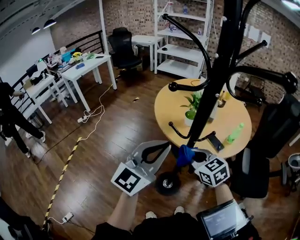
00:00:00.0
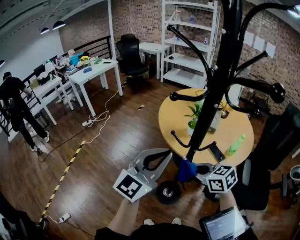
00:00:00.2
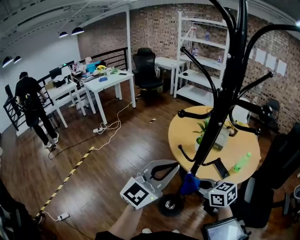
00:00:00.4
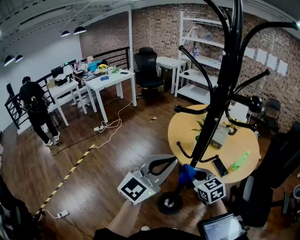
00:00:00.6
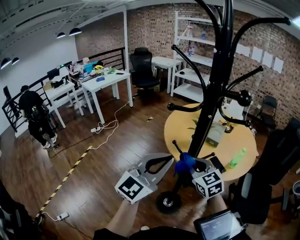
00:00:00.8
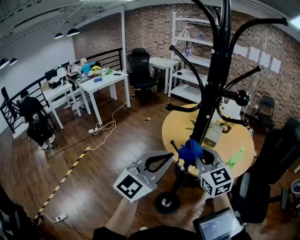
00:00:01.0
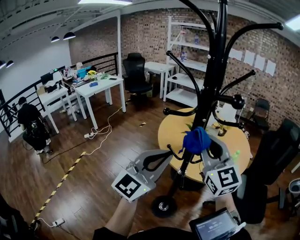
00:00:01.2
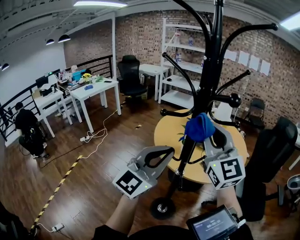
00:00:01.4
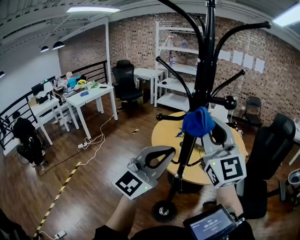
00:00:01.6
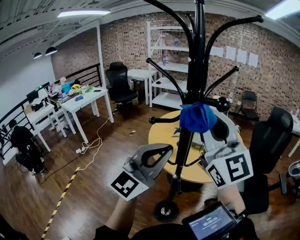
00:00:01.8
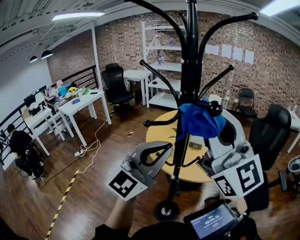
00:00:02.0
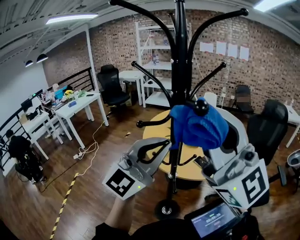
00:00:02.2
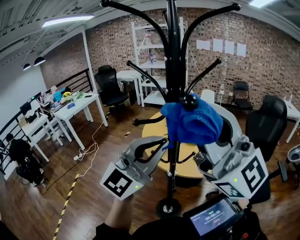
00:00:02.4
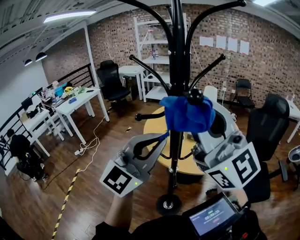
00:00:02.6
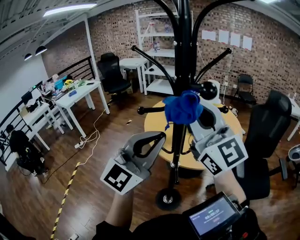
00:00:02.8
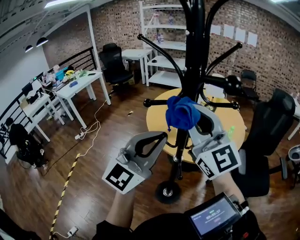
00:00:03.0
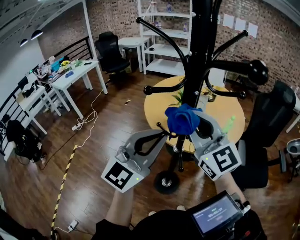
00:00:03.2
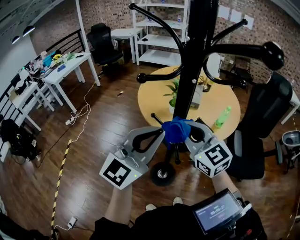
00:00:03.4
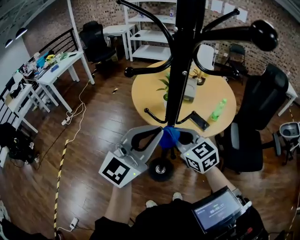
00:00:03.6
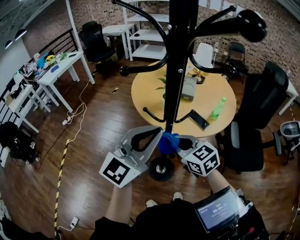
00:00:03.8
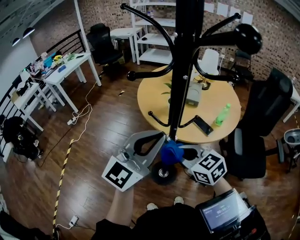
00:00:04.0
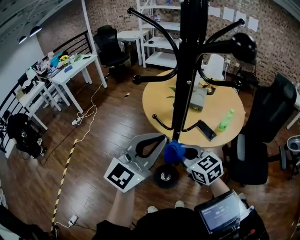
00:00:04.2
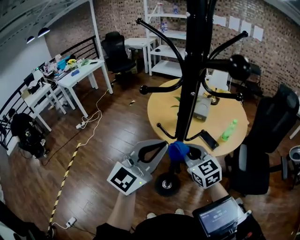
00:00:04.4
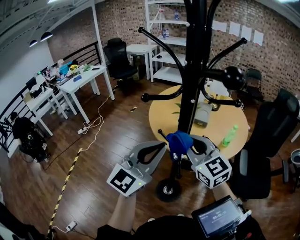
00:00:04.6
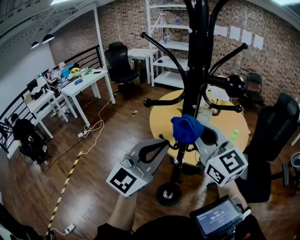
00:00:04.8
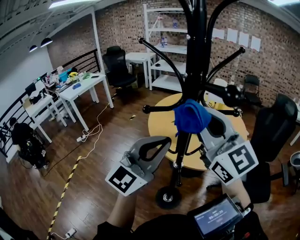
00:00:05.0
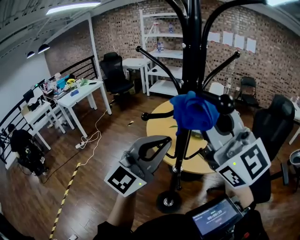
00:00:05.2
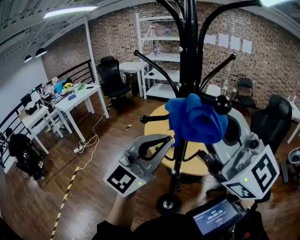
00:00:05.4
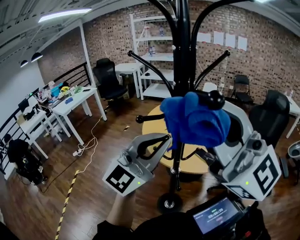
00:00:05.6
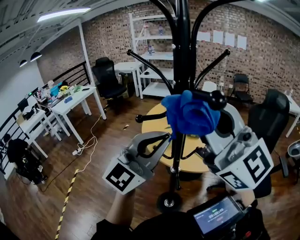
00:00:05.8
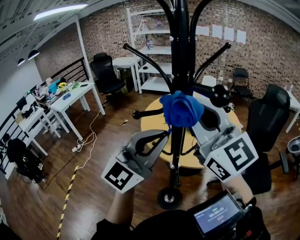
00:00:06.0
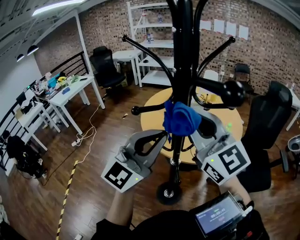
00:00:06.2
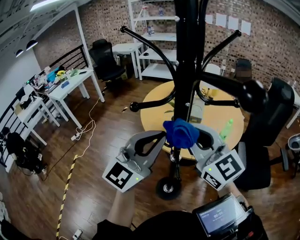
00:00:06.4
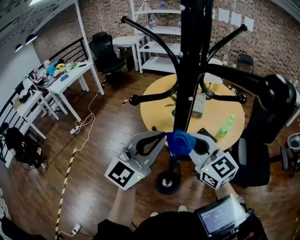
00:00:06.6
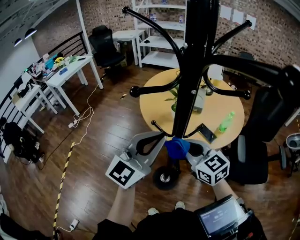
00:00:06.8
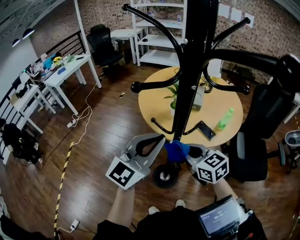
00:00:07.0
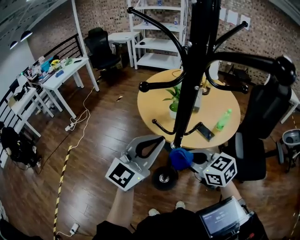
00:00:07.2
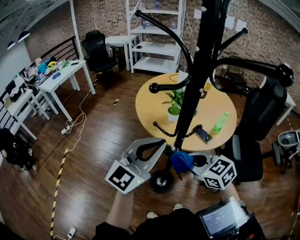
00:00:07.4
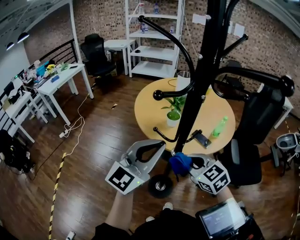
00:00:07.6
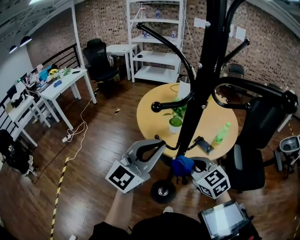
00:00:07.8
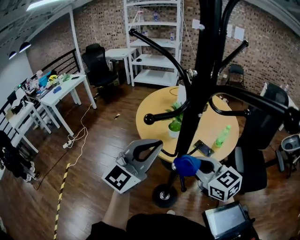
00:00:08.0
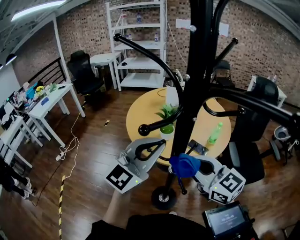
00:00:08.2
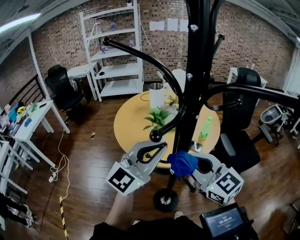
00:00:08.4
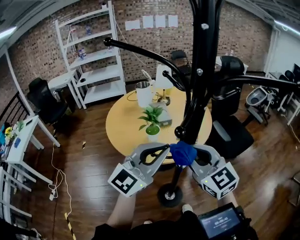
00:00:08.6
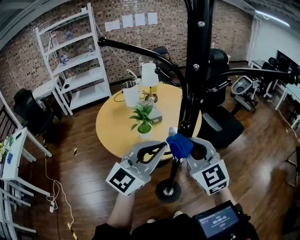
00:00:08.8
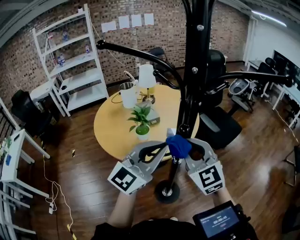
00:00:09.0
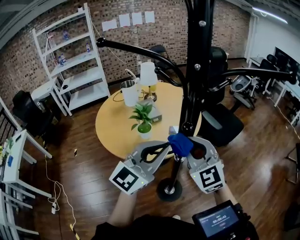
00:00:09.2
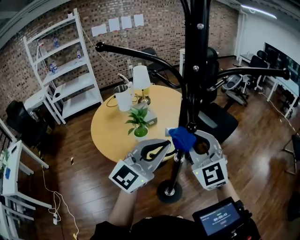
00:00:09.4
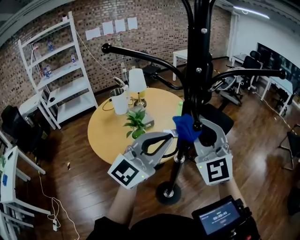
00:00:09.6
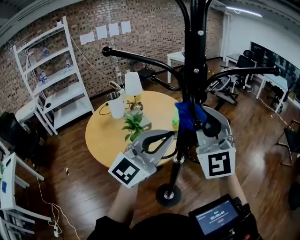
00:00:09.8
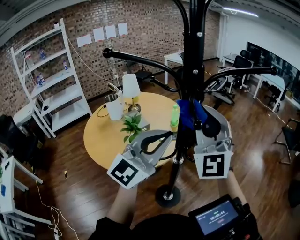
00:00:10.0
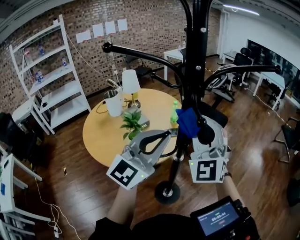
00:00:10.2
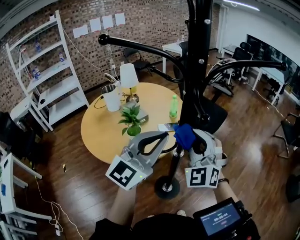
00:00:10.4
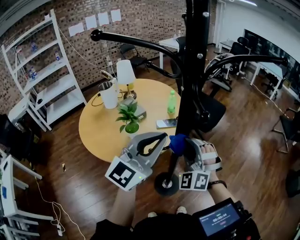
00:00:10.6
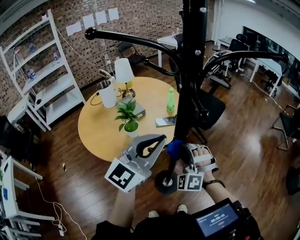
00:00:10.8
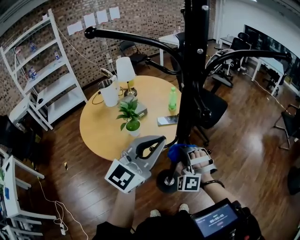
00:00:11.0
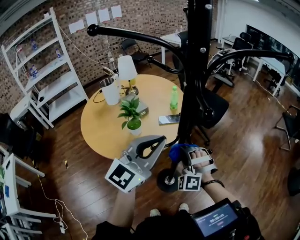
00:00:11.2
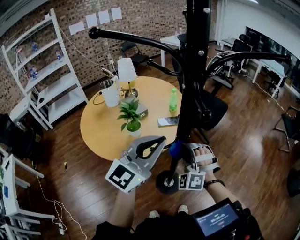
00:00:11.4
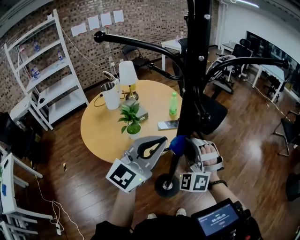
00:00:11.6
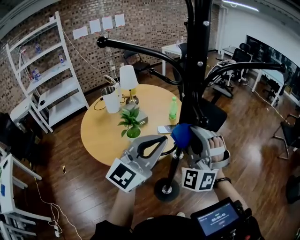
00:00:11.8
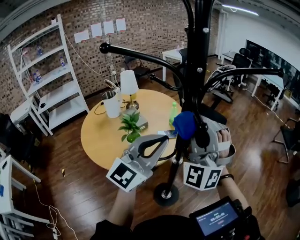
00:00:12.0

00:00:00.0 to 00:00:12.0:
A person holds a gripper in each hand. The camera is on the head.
00:00:00.0 to 00:00:01.6: The left gripper travels upward by roughly 10 cm. Meanwhile the right gripper shifts about 35 cm upward, and angles its fingers upward, by about 50 degrees.
00:00:01.6 to 00:00:03.0: The right gripper travels upward and back again, approximately 10 cm each way.
00:00:03.0 to 00:00:04.4: The left gripper is displaced downward by roughly 5 cm. The right gripper moves downward, some 25 cm, and angles its fingers downward, by some 40 degrees.
00:00:04.4 to 00:00:06.0: The right gripper is displaced upward by approximately 30 cm, and angles its fingers upward, by approximately 40 degrees; the left gripper shifts approximately 10 cm upward.
00:00:06.0 to 00:00:07.6: The left gripper shifts roughly 10 cm downward. Meanwhile the right gripper goes roughly 35 cm downward, and tips its fingers downward by some 50 degrees.
00:00:07.6 to 00:00:09.0: The right gripper moves upward, about 10 cm, and turns by roughly 60 degrees, while the left gripper shifts by roughly 10 cm, and changes its angle by approximately 40 degrees.
00:00:09.0 to 00:00:10.4: The right gripper reaches about 15 cm upward, then returns, and swivels roughly 40 degrees.
00:00:10.4 to 00:00:12.0: The right gripper goes downward and returns, some 20 cm each way, and swivels about 20 degrees.

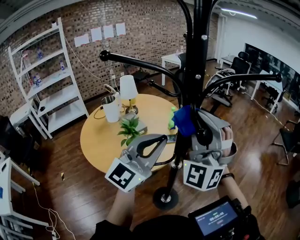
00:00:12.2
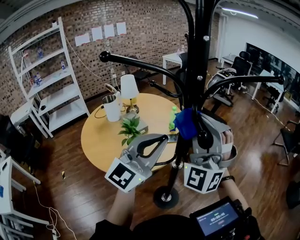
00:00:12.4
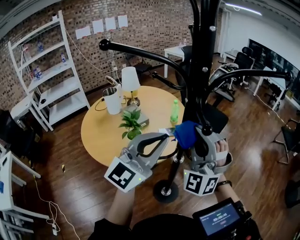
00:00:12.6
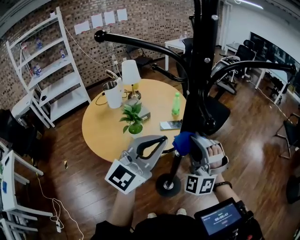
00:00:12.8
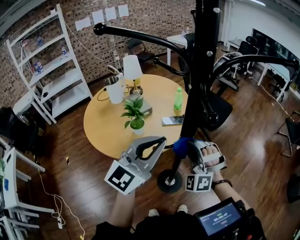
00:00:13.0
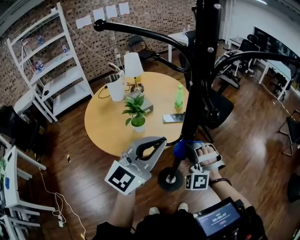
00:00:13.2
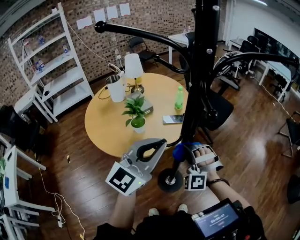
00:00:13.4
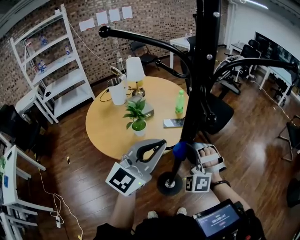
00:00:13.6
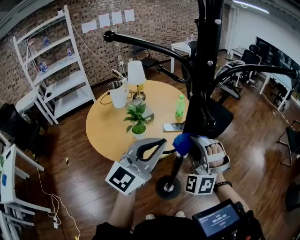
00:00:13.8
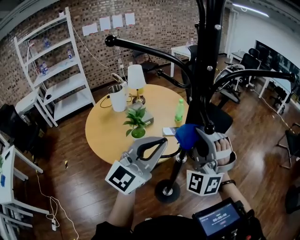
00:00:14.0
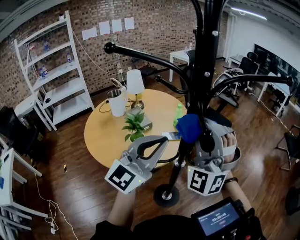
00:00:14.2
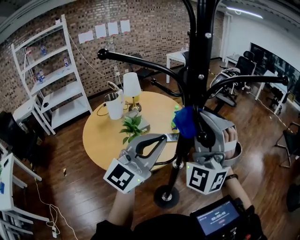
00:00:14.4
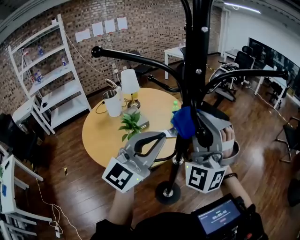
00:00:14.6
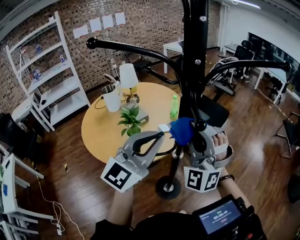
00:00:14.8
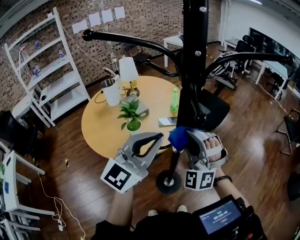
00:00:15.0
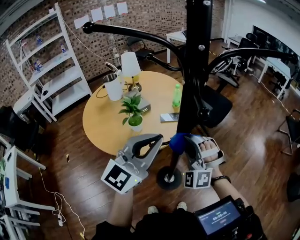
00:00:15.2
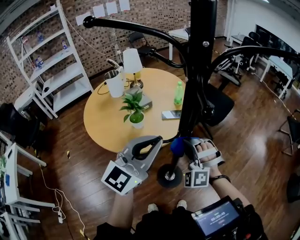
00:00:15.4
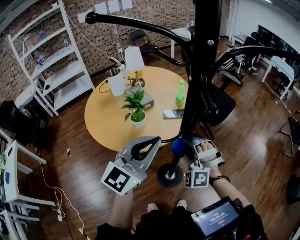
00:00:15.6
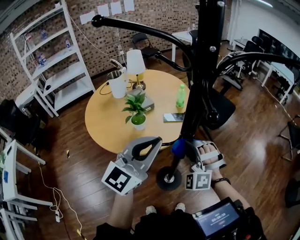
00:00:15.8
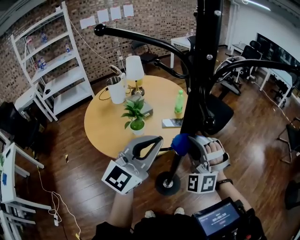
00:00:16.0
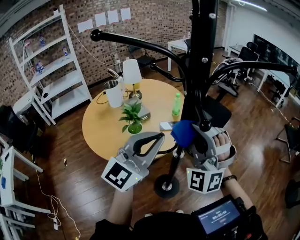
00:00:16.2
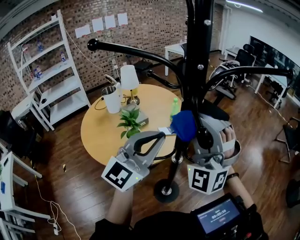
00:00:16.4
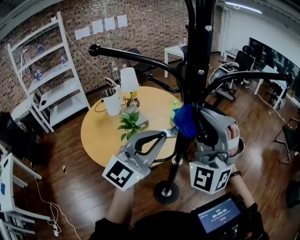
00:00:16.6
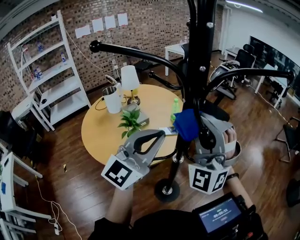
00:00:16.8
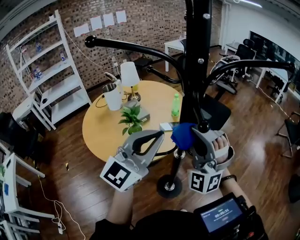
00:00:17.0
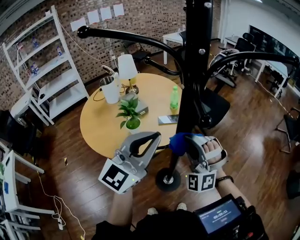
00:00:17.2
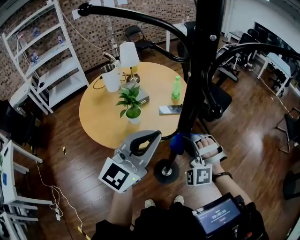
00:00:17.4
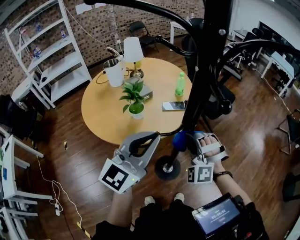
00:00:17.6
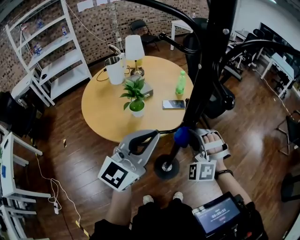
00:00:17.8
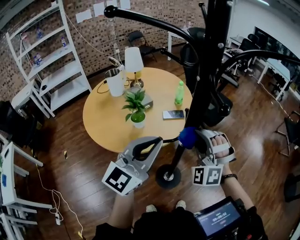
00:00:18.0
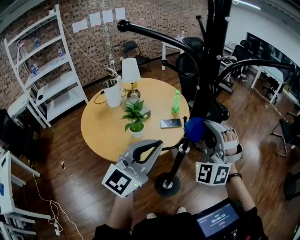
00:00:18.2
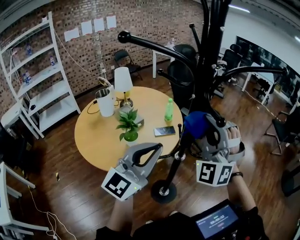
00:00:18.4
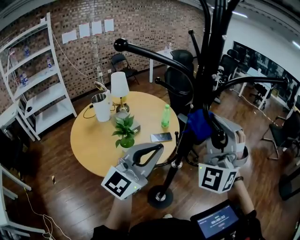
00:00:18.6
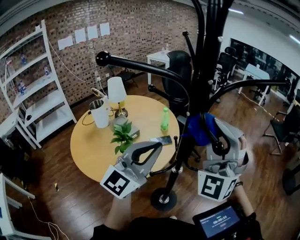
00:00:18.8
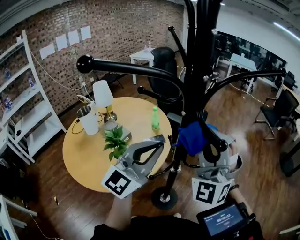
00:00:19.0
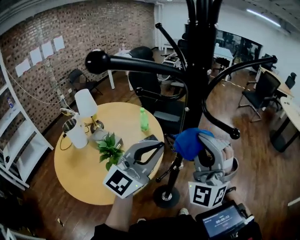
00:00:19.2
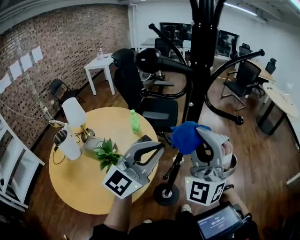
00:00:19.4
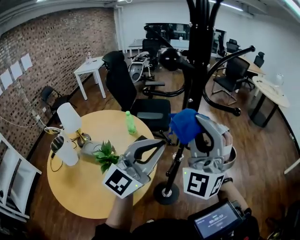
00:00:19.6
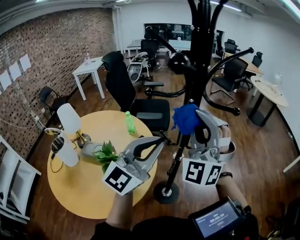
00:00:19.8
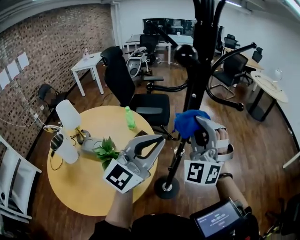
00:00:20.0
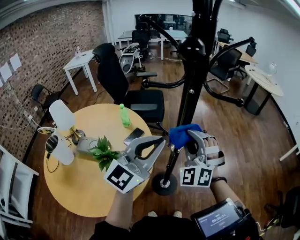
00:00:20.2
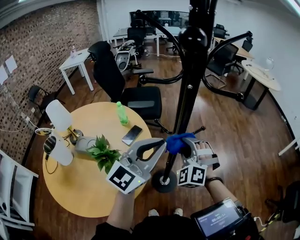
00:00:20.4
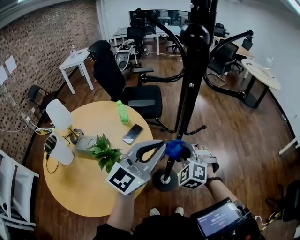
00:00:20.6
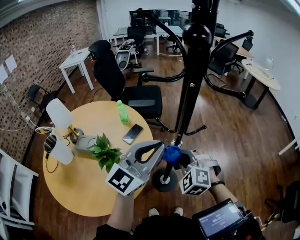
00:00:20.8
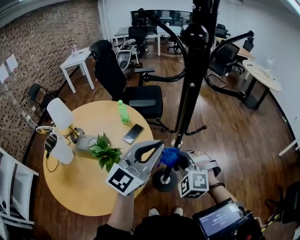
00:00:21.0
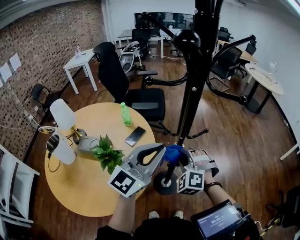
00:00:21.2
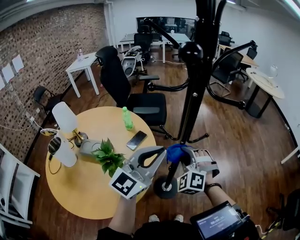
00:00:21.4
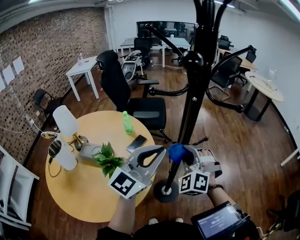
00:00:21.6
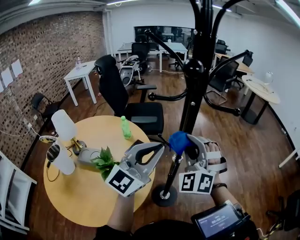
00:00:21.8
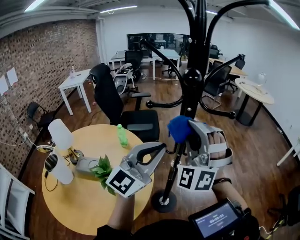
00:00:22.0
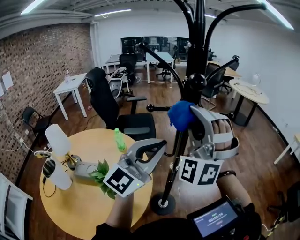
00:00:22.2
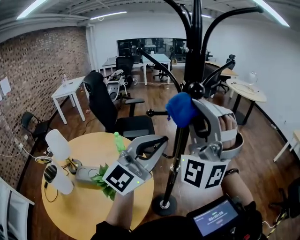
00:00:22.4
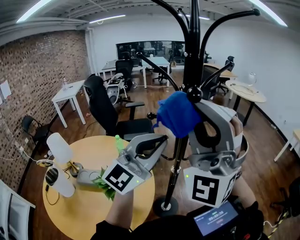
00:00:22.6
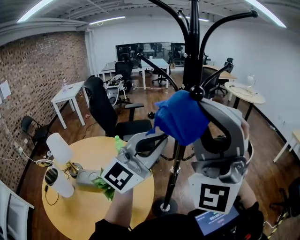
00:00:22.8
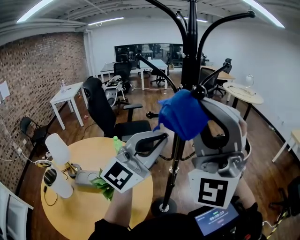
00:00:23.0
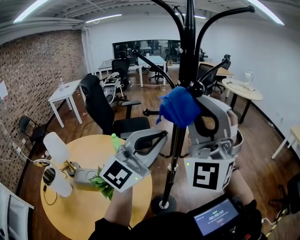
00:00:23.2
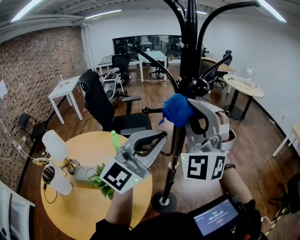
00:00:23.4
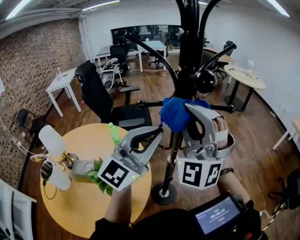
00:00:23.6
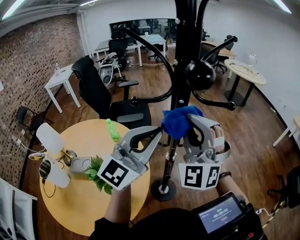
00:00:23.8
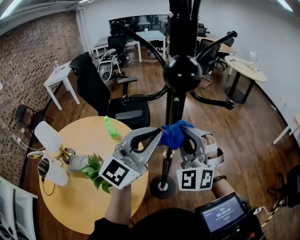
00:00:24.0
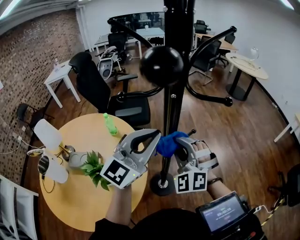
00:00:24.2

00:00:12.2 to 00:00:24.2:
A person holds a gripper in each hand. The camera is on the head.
00:00:12.2 to 00:00:13.8: The right gripper heads downward, covering about 15 cm, and changes its angle by some 20 degrees, while the left gripper ends up roughly 5 cm from where it was.
00:00:13.8 to 00:00:15.2: The right gripper moves about 15 cm upward and comes back.
00:00:15.2 to 00:00:16.6: The left gripper moves some 5 cm. The right gripper shifts some 25 cm upward, and turns by roughly 30 degrees.
00:00:16.6 to 00:00:18.2: The right gripper moves downward, approximately 10 cm. The left gripper goes approximately 10 cm downward and backward.
00:00:18.2 to 00:00:19.8: The left gripper moves about 10 cm, and rotates some 50 degrees. Meanwhile the right gripper swings up and down, approximately 10 cm each way, with 2 reversals, and swivels some 40 degrees.
00:00:19.8 to 00:00:21.2: The right gripper moves downward, about 30 cm, and tips its fingers downward by roughly 50 degrees. Meanwhile the left gripper moves downward, roughly 5 cm.
00:00:21.2 to 00:00:22.6: The right gripper shifts about 40 cm upward, and tips its fingers upward by some 60 degrees; the left gripper shifts some 15 cm upward, and turns by roughly 20 degrees.
00:00:22.6 to 00:00:24.2: The right gripper travels downward by approximately 35 cm, and angles its fingers downward, by about 40 degrees. Meanwhile the left gripper moves downward and forward, about 10 cm.
